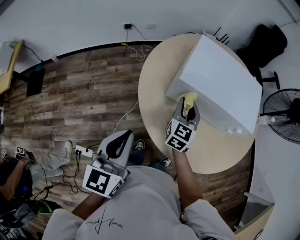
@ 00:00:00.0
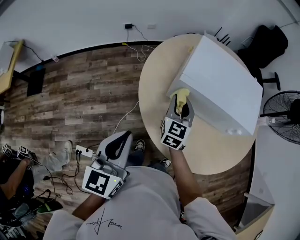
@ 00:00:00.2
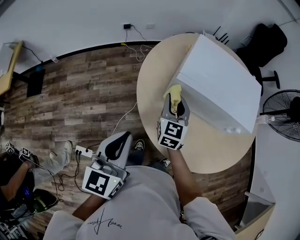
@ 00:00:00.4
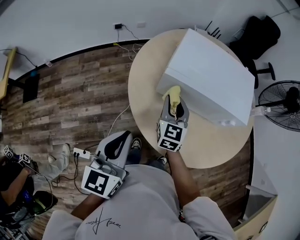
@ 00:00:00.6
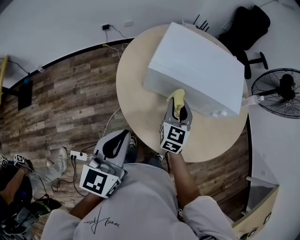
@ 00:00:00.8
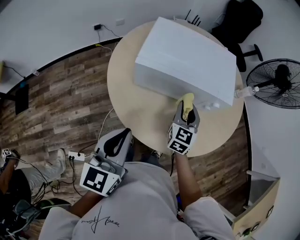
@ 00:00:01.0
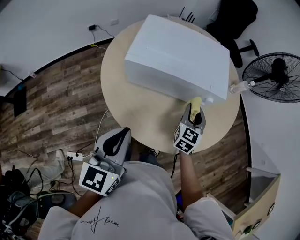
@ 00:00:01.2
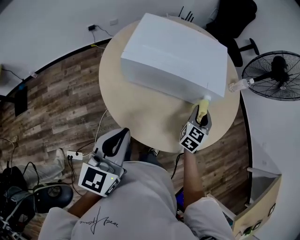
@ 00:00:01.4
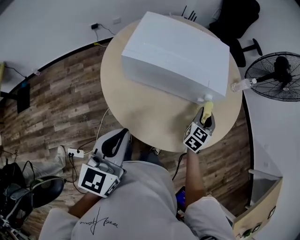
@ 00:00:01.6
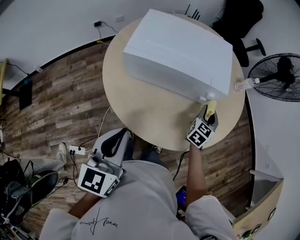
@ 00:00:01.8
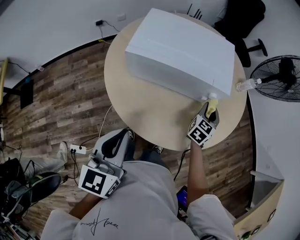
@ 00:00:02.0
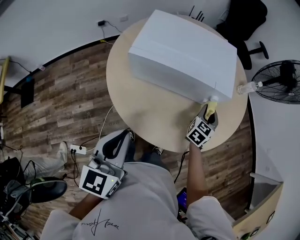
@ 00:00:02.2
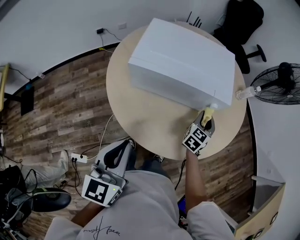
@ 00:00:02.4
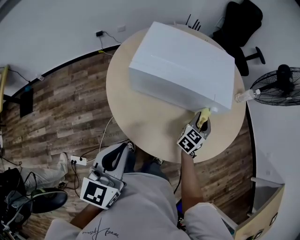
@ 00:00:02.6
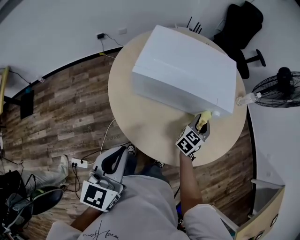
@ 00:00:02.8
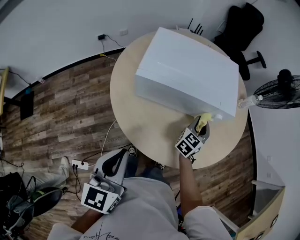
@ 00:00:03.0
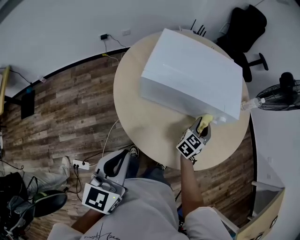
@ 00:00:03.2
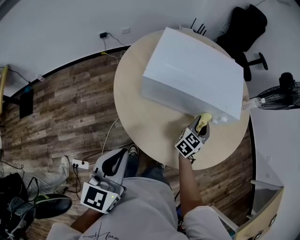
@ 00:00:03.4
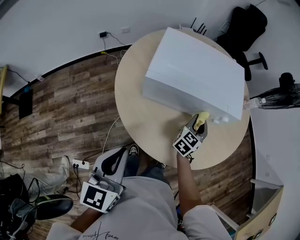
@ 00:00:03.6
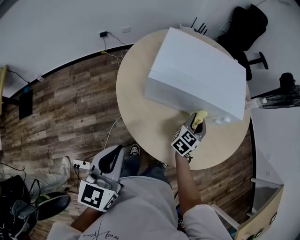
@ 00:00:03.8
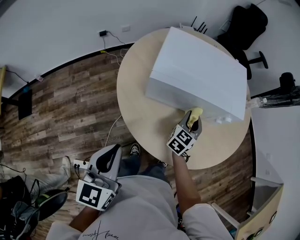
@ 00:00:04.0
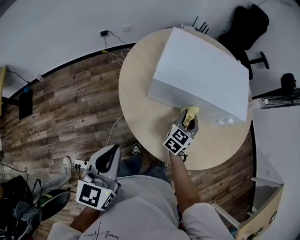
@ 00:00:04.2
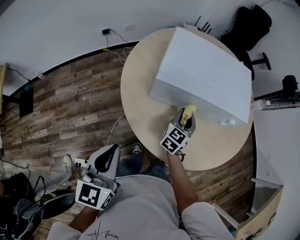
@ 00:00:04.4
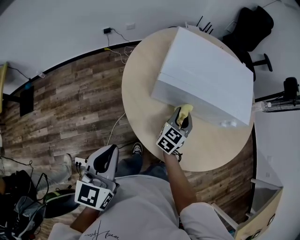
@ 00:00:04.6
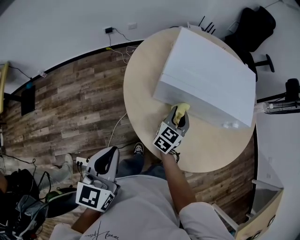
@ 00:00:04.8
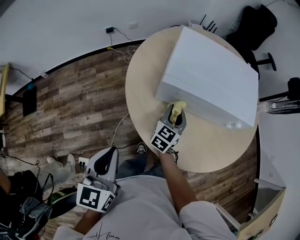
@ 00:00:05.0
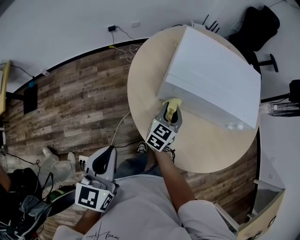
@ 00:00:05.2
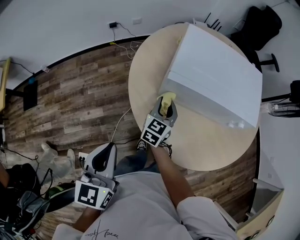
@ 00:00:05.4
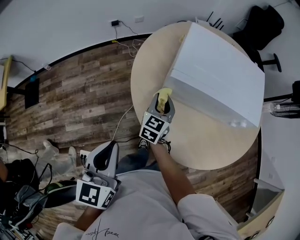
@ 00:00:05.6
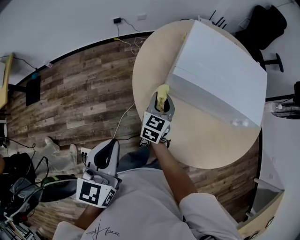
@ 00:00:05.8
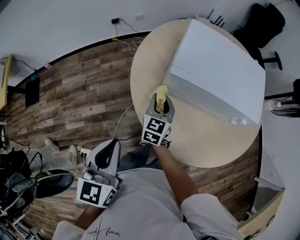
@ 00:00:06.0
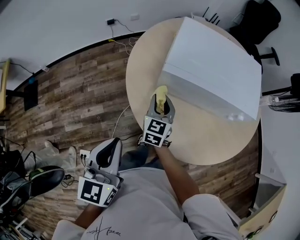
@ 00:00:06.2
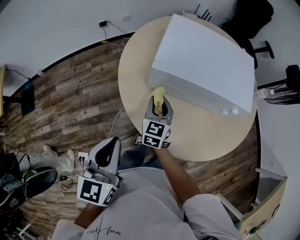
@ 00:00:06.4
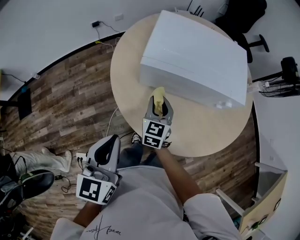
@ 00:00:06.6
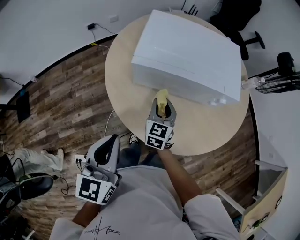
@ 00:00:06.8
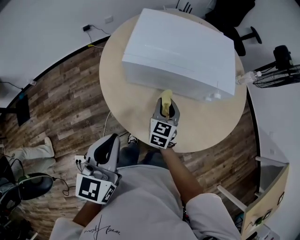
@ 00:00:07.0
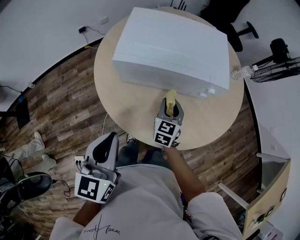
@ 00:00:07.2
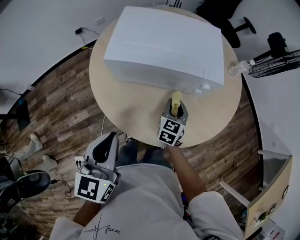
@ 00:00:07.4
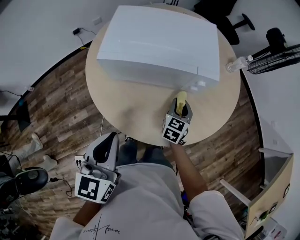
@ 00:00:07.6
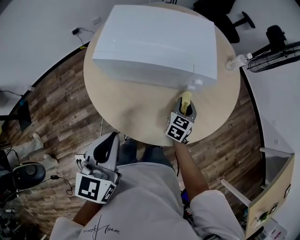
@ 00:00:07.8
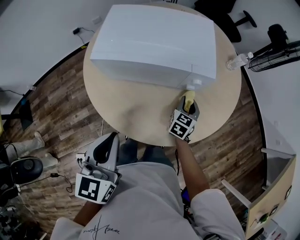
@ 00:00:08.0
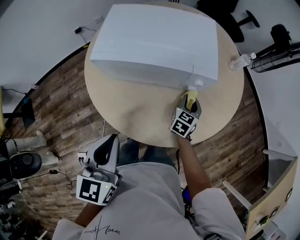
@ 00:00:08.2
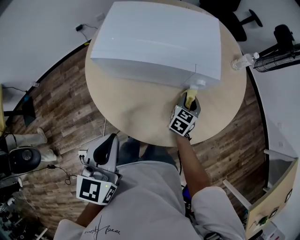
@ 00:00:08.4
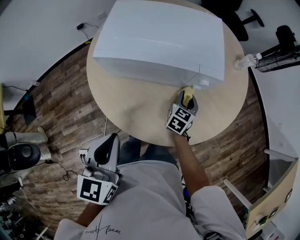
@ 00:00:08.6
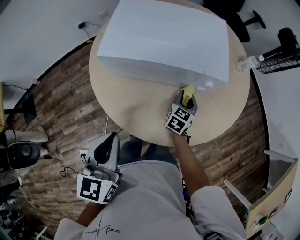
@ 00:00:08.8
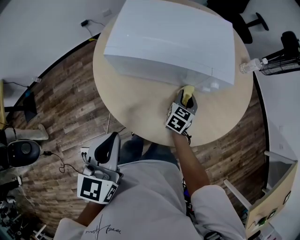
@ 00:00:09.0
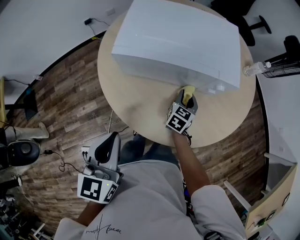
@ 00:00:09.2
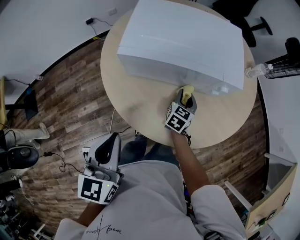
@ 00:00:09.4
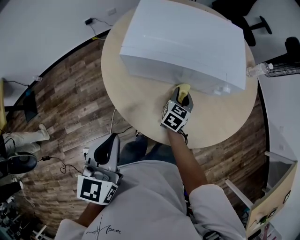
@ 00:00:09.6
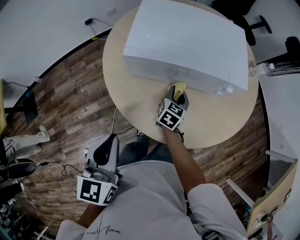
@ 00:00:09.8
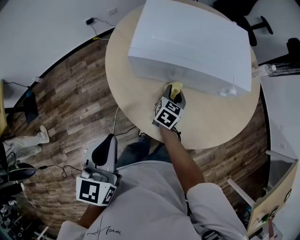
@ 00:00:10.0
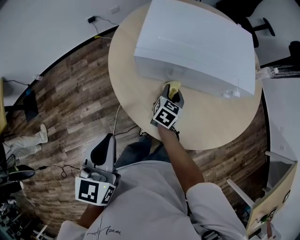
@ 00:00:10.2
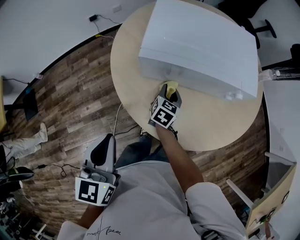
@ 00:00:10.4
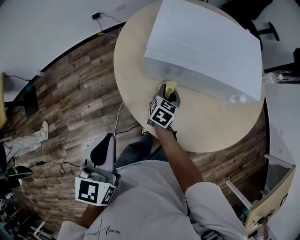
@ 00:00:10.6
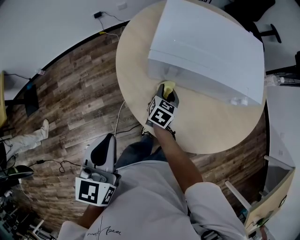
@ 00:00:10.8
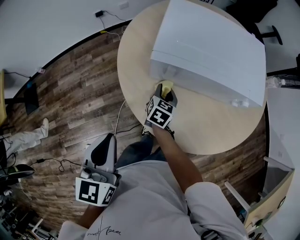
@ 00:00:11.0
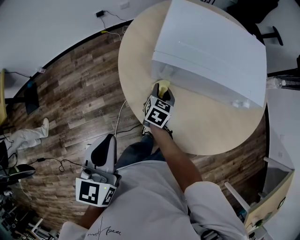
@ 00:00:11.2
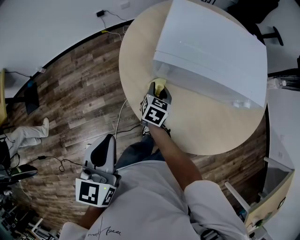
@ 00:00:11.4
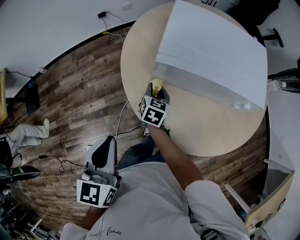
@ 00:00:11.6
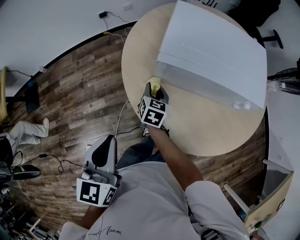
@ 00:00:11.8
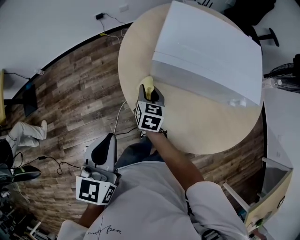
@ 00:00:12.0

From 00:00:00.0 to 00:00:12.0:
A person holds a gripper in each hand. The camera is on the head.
From 00:00:00.0 to 00:00:01.6: The left gripper is displaced to the right by roughly 20 cm. The right gripper heads to the right, covering roughly 35 cm, and turns by approximately 20 degrees.
From 00:00:01.6 to 00:00:03.0: Both grippers move to the left, about 5 cm.
From 00:00:03.0 to 00:00:04.4: The grippers both shift to the left by some 15 cm.
From 00:00:04.4 to 00:00:06.0: The right gripper moves to the left, approximately 20 cm, and changes its angle by about 20 degrees.
From 00:00:06.0 to 00:00:07.6: The left gripper heads to the right, covering some 20 cm. The right gripper moves to the right, roughly 35 cm, and changes its angle by some 20 degrees.
From 00:00:07.6 to 00:00:09.0: The right gripper reaches approximately 5 cm to the right, then returns.
From 00:00:09.0 to 00:00:10.4: Both grippers travel together to the left, approximately 15 cm.
From 00:00:10.4 to 00:00:12.0: The right gripper shifts approximately 15 cm to the left, and changes its angle by about 20 degrees.

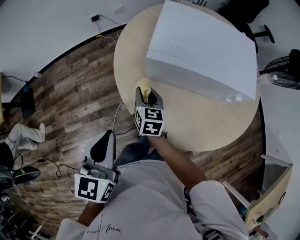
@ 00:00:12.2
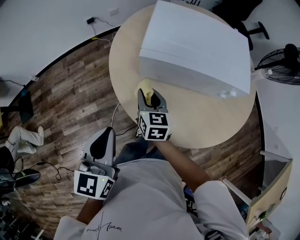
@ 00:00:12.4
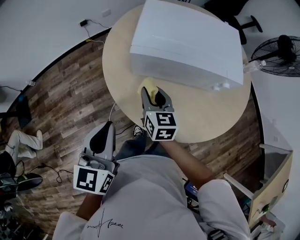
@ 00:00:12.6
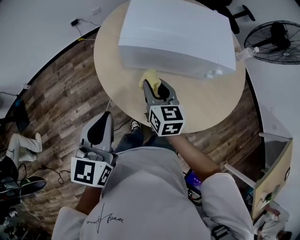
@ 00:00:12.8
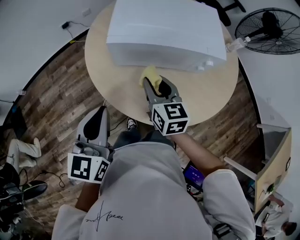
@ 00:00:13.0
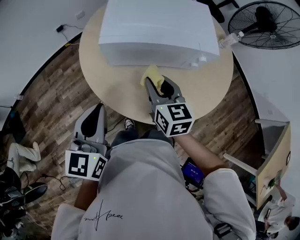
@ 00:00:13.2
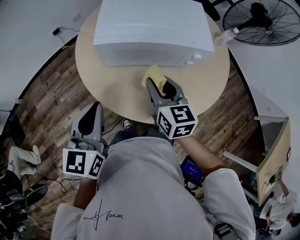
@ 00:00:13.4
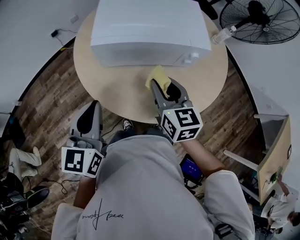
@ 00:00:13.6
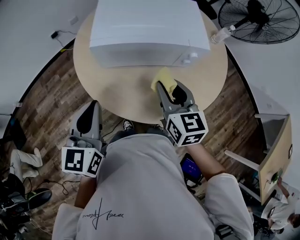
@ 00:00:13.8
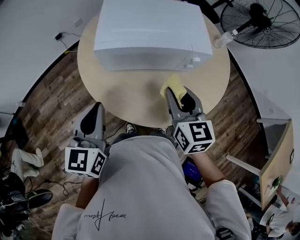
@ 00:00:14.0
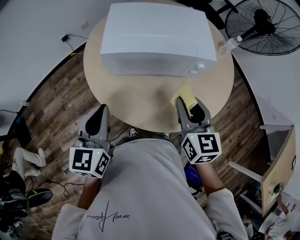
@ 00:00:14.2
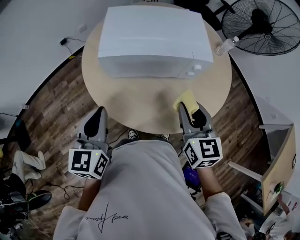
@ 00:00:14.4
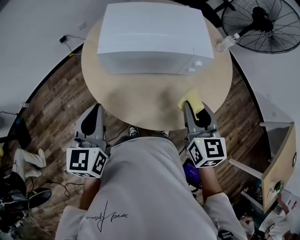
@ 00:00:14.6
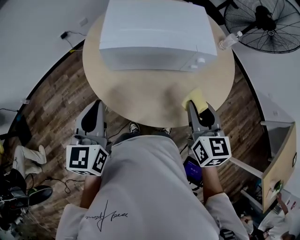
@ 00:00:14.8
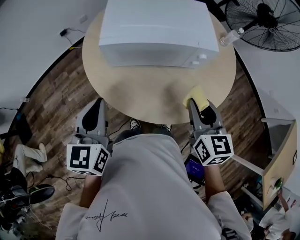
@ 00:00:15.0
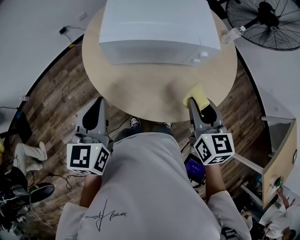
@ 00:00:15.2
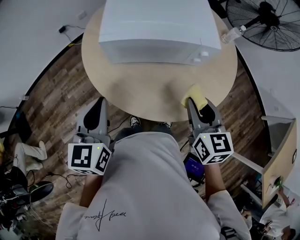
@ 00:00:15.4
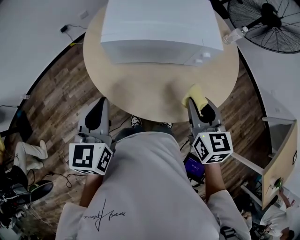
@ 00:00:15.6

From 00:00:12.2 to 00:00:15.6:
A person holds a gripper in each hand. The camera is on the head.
From 00:00:12.2 to 00:00:13.8: The left gripper moves to the right, approximately 10 cm, while the right gripper goes approximately 30 cm to the right, upward and backward.
From 00:00:13.8 to 00:00:15.6: The right gripper goes about 5 cm to the right.

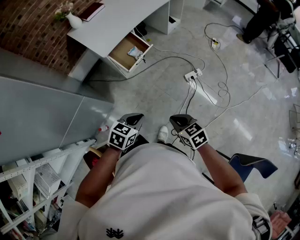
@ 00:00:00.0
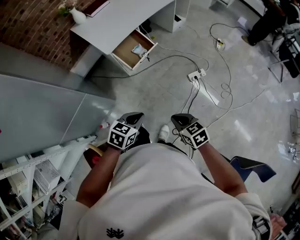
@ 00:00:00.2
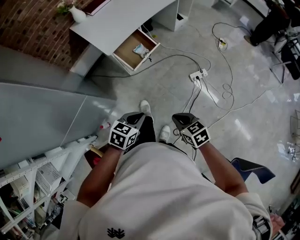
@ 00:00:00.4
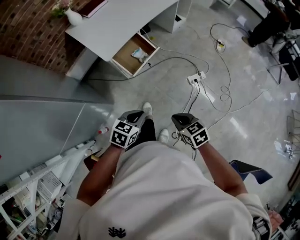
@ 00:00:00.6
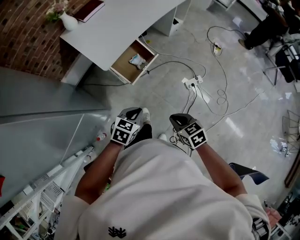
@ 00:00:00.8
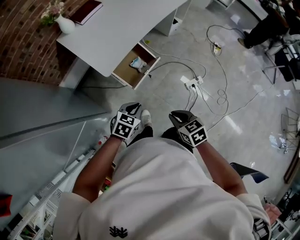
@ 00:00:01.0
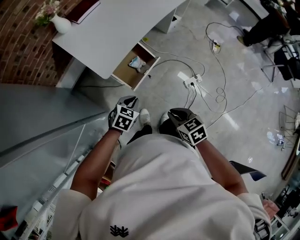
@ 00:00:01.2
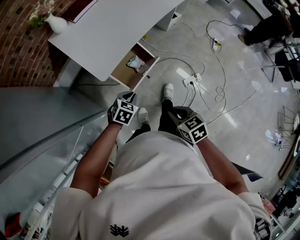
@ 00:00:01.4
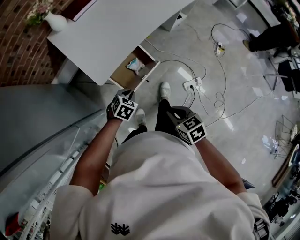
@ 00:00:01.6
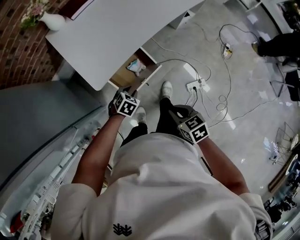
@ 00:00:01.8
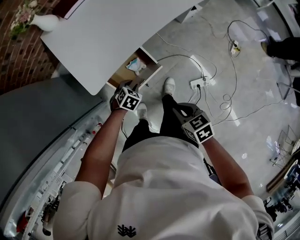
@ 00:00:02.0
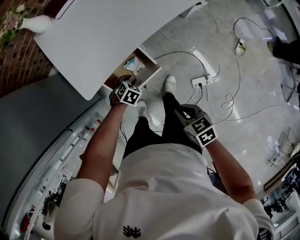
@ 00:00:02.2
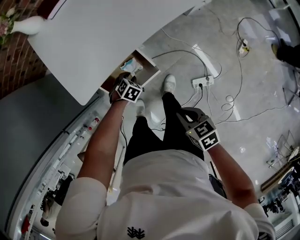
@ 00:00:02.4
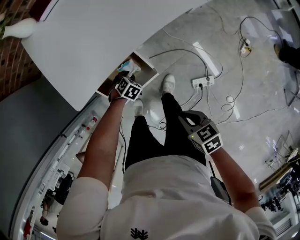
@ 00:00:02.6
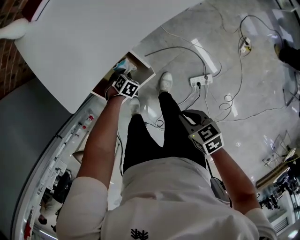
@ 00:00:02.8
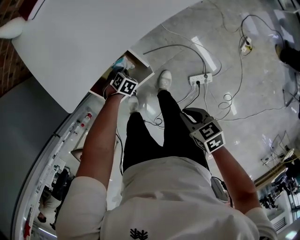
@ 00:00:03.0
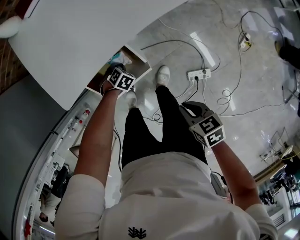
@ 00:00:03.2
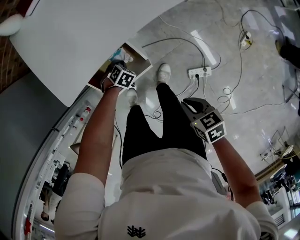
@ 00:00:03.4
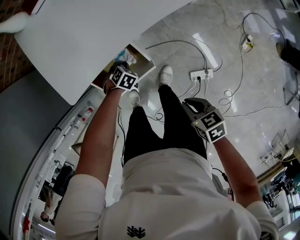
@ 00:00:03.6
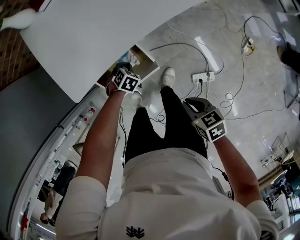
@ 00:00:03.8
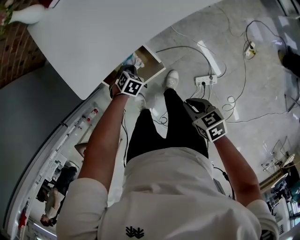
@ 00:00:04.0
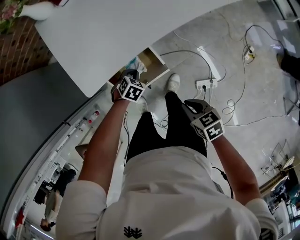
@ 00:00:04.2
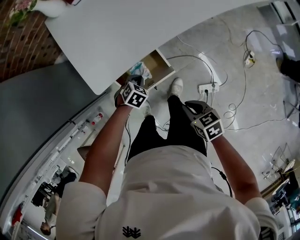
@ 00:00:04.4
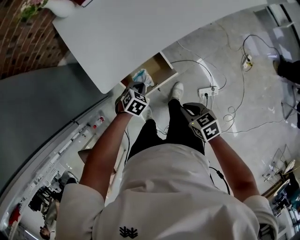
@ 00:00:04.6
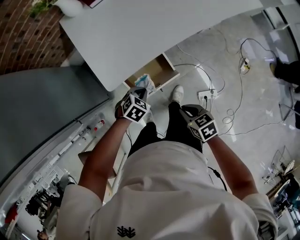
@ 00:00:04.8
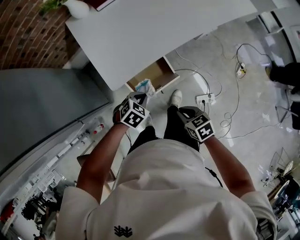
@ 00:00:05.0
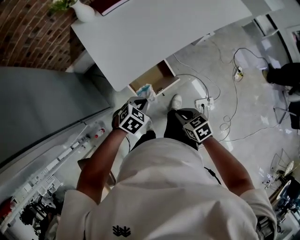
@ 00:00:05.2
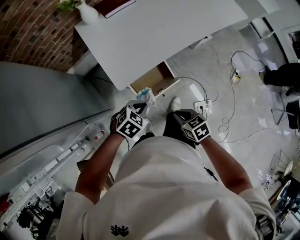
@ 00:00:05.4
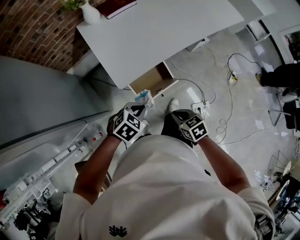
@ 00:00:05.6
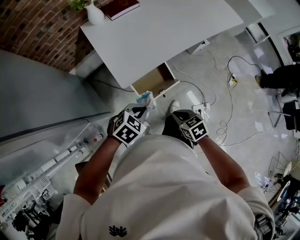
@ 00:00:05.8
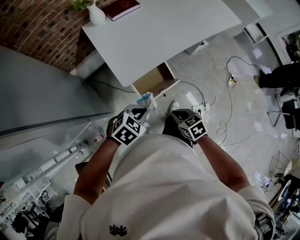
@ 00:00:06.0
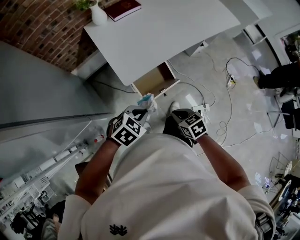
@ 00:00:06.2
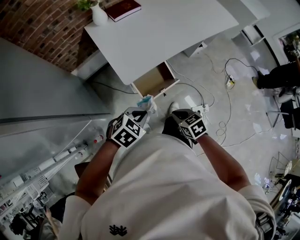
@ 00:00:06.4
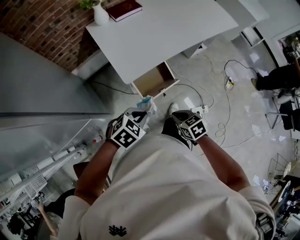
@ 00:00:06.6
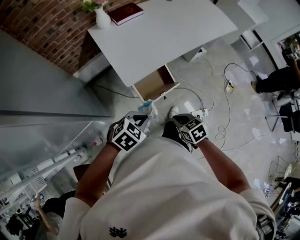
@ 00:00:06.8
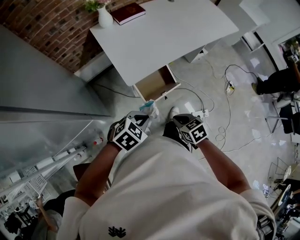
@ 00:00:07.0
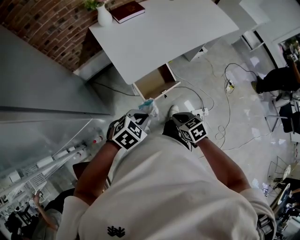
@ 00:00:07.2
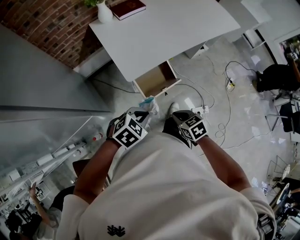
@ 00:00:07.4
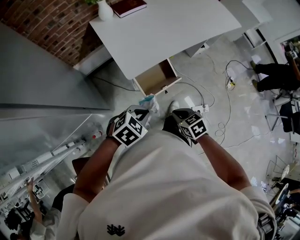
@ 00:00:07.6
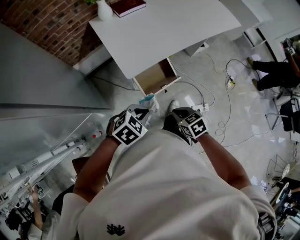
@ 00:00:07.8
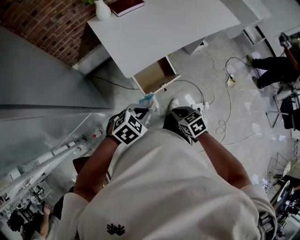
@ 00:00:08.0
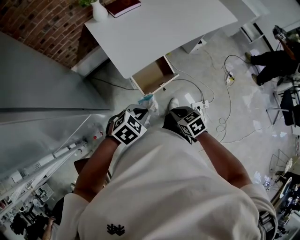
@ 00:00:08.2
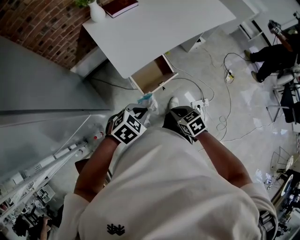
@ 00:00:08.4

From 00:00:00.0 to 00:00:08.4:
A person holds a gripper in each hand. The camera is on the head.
From 00:00:00.0 to 00:00:01.4: The two grippers go roughly 40 cm forward.
From 00:00:01.4 to 00:00:02.8: The left gripper heads downward, covering roughly 35 cm, and changes its angle by about 30 degrees, while the right gripper shifts by roughly 40 cm, and changes its angle by about 20 degrees.
From 00:00:02.8 to 00:00:04.2: The left gripper heads upward, covering some 10 cm, while the right gripper ends up about 5 cm from where it was.
From 00:00:04.2 to 00:00:05.6: The left gripper is displaced upward, backward and to the left by some 40 cm, and swivels roughly 20 degrees, while the right gripper travels to the left, upward and backward by roughly 25 cm.
From 00:00:05.6 to 00:00:07.0: The left gripper is displaced backward and upward by some 10 cm. Meanwhile the right gripper travels backward by about 5 cm.
From 00:00:07.0 to 00:00:08.4: The grippers make only small movements.
